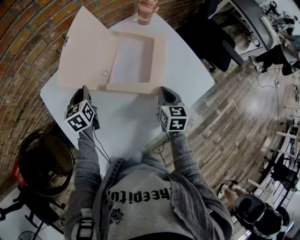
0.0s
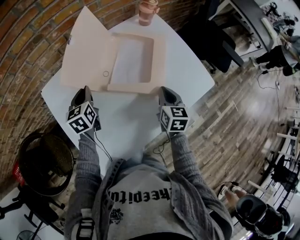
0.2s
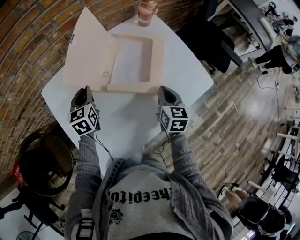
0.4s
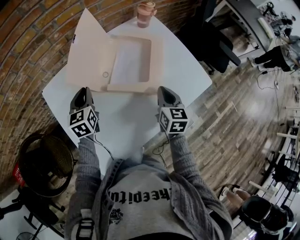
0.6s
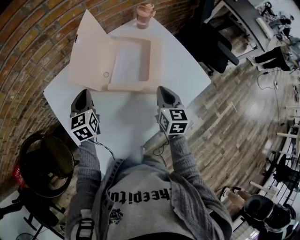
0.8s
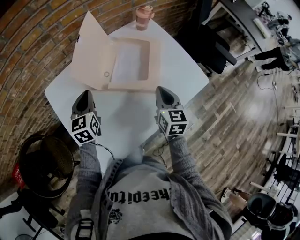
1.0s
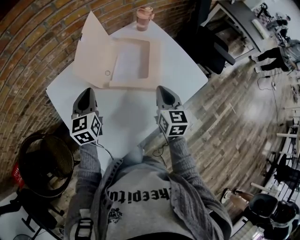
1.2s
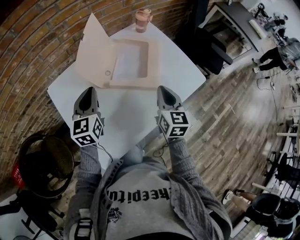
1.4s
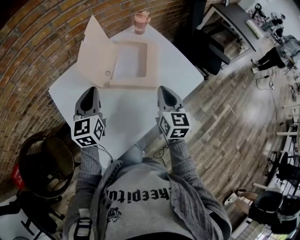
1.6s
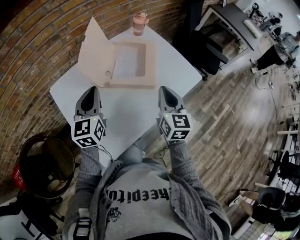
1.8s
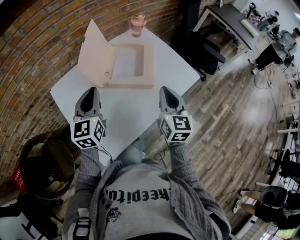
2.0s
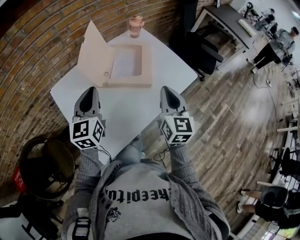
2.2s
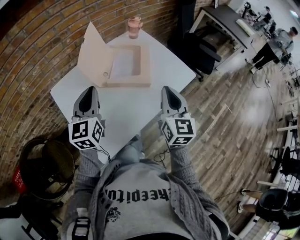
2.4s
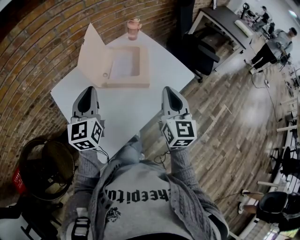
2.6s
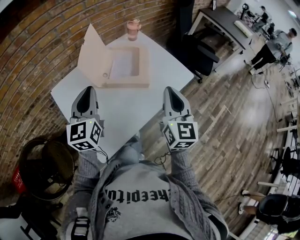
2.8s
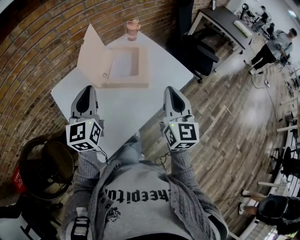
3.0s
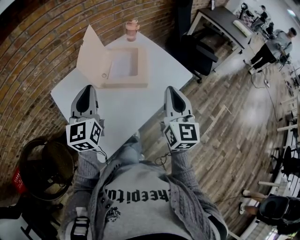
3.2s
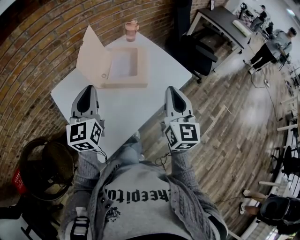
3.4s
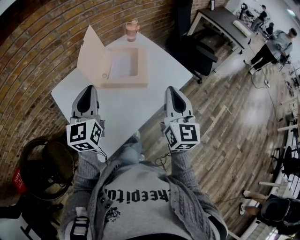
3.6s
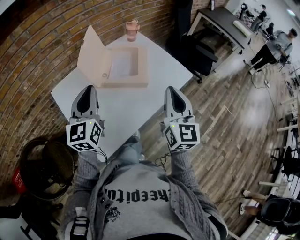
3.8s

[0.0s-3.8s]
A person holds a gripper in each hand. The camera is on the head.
0.0s to 1.2s: The left gripper moves upward and backward, roughly 10 cm. The right gripper travels upward by roughly 10 cm.
1.2s to 2.6s: Both grippers travel together upward and backward, roughly 15 cm.
2.6s to 3.8s: There are only small adjustments of the grippers.

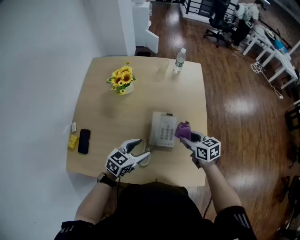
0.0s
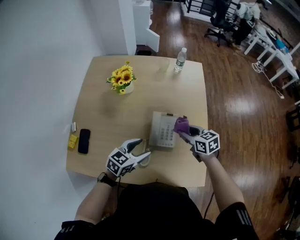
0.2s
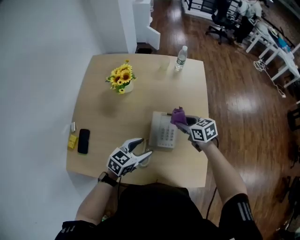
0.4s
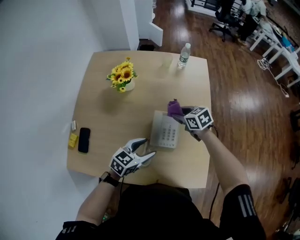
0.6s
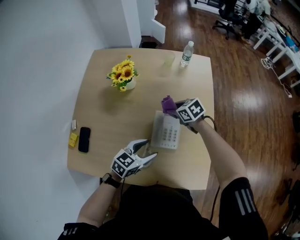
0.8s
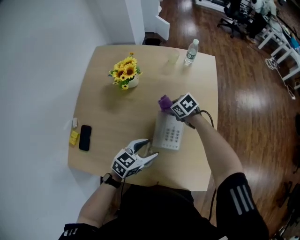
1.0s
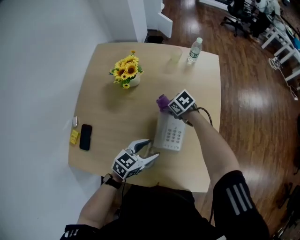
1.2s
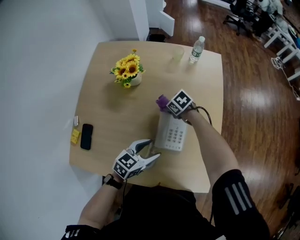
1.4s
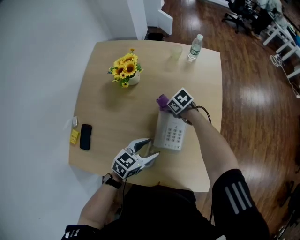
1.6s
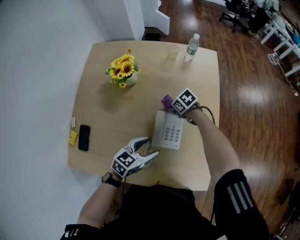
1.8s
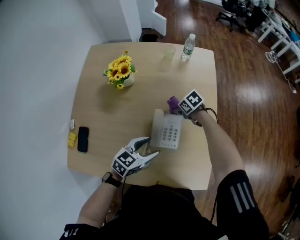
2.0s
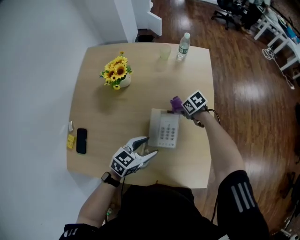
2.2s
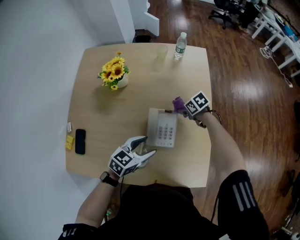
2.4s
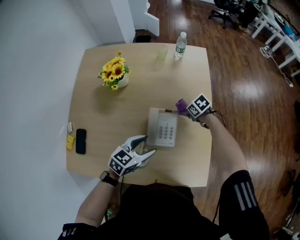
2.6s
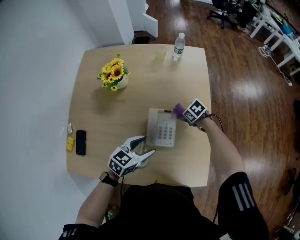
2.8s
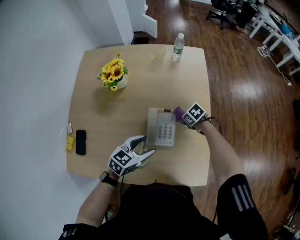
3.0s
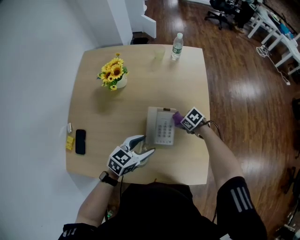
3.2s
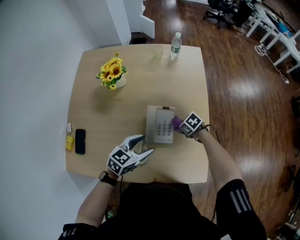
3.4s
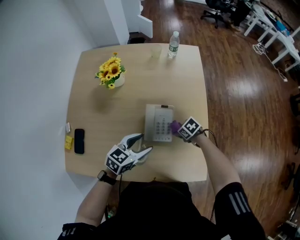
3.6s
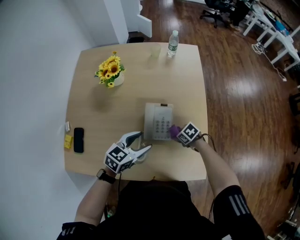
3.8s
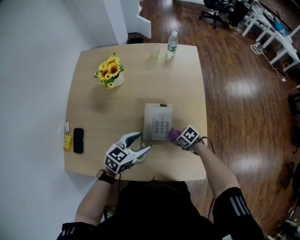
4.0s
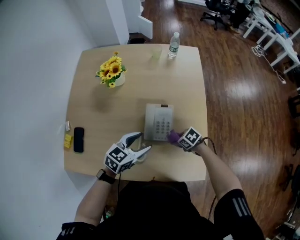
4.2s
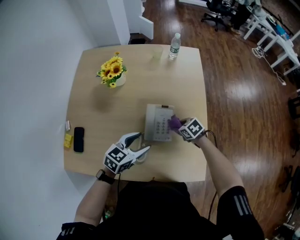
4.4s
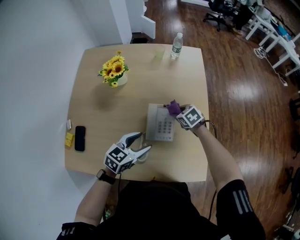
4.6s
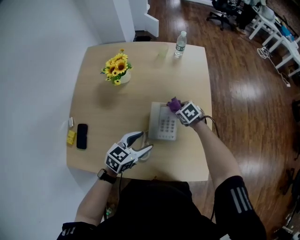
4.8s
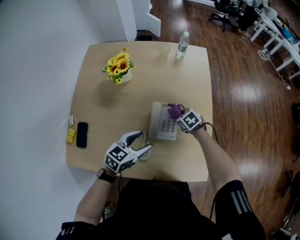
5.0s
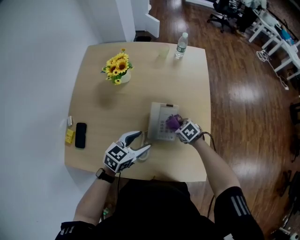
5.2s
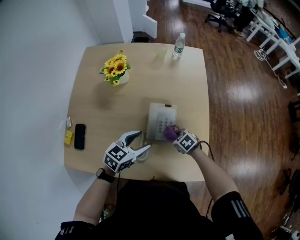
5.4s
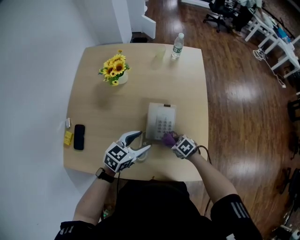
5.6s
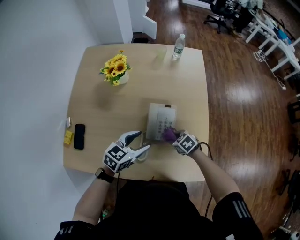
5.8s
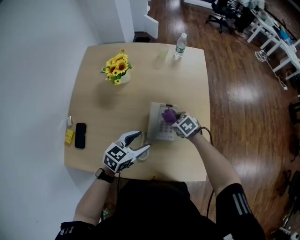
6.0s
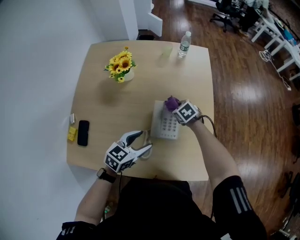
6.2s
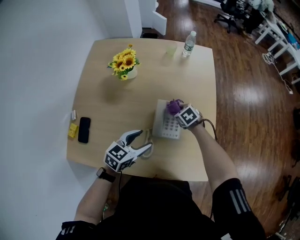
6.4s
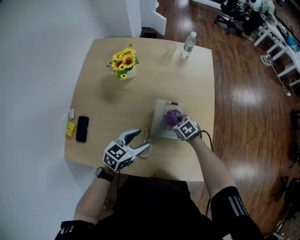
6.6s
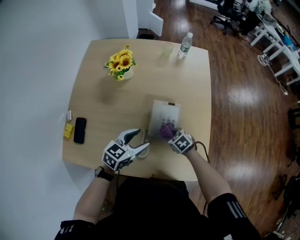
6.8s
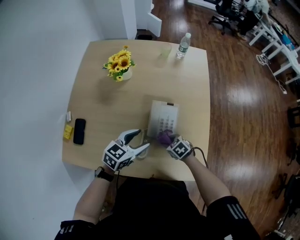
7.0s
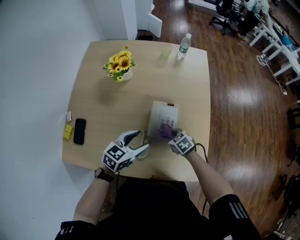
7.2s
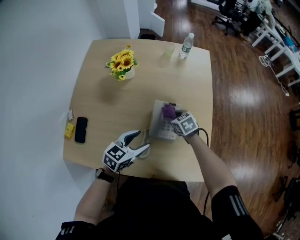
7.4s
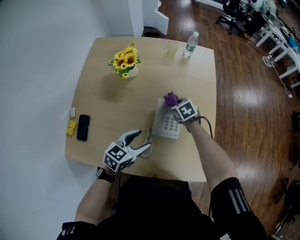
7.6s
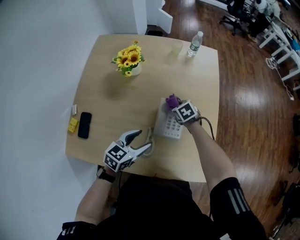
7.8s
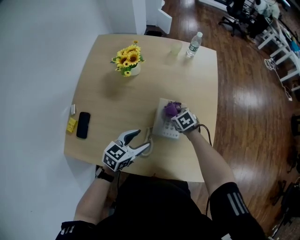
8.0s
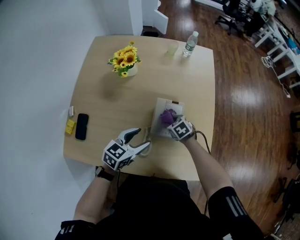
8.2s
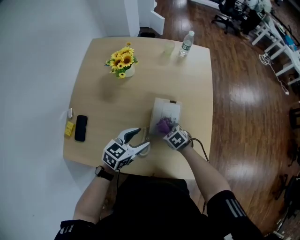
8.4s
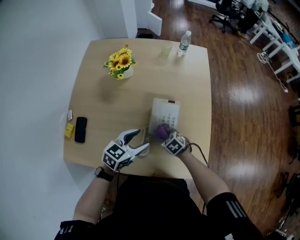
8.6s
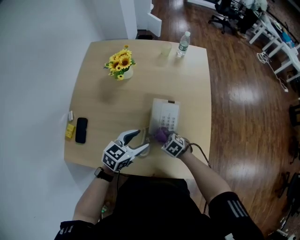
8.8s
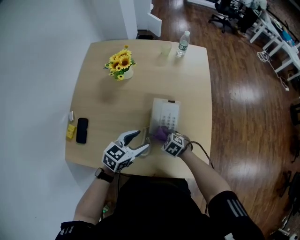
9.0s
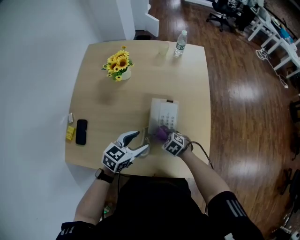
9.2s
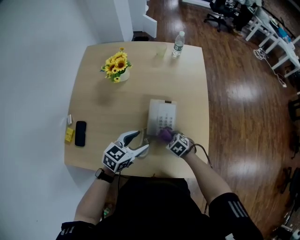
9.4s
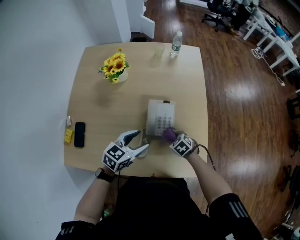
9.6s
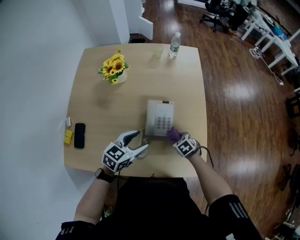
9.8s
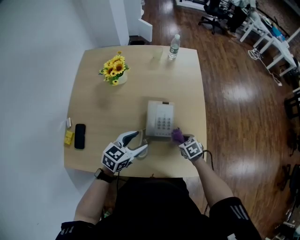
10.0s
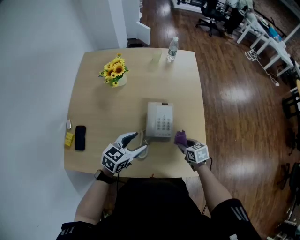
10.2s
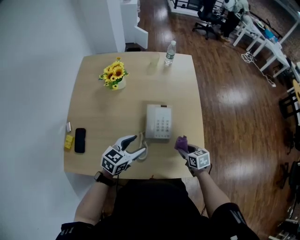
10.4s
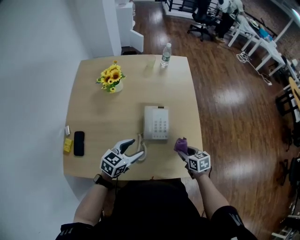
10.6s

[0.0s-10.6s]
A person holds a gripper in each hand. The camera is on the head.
0.0s to 1.6s: The left gripper changes place by roughly 5 cm. The right gripper ends up approximately 25 cm from where it was, and swivels approximately 40 degrees.
1.6s to 3.0s: The right gripper changes place by about 15 cm.
3.0s to 4.6s: The right gripper goes approximately 5 cm upward.
6.0s to 7.6s: The right gripper goes forward and backward, roughly 20 cm each way, reversing 2 times.
7.6s to 9.0s: The right gripper goes roughly 20 cm backward, and turns by some 20 degrees.
9.0s to 10.6s: The right gripper is displaced to the right and upward by some 15 cm, and rotates around the line of its fingers by approximately 50 degrees, clockwise from behind.

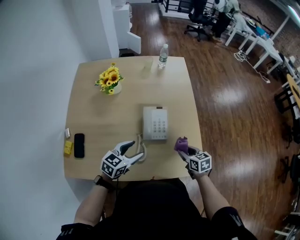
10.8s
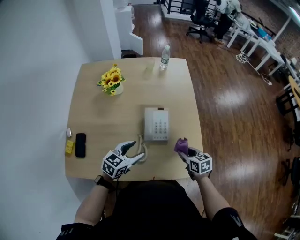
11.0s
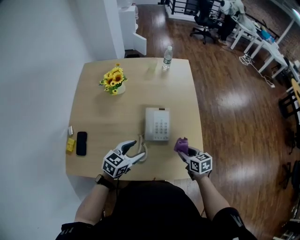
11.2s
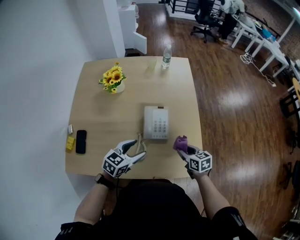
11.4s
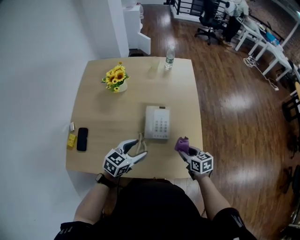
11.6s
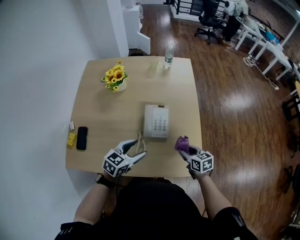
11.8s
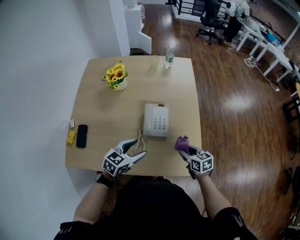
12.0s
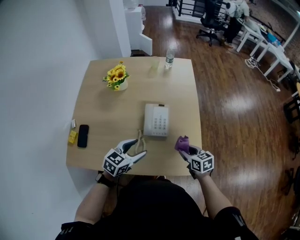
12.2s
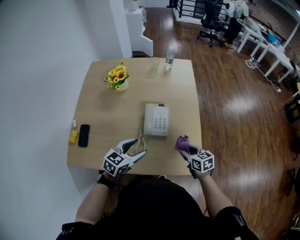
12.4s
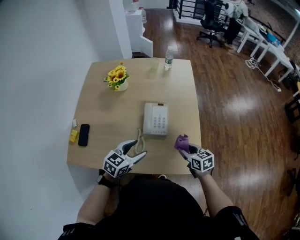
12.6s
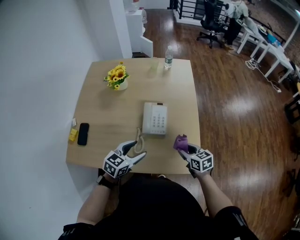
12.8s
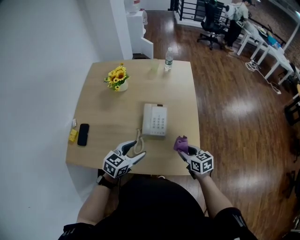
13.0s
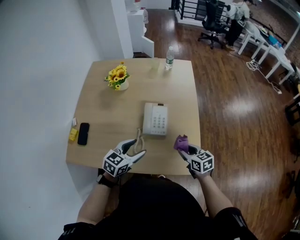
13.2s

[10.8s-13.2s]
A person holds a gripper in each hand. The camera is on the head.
10.8s to 12.0s: The grippers make only small movements.
12.0s to 13.2s: The grippers make only small movements.

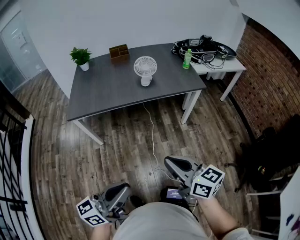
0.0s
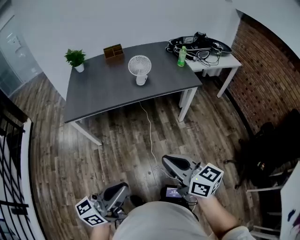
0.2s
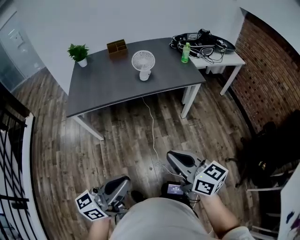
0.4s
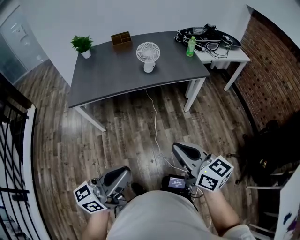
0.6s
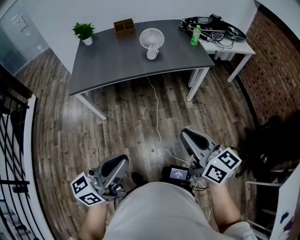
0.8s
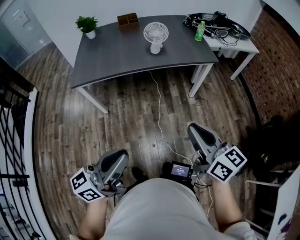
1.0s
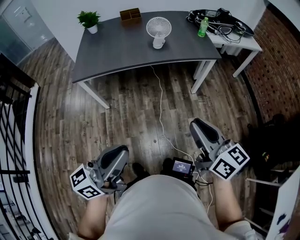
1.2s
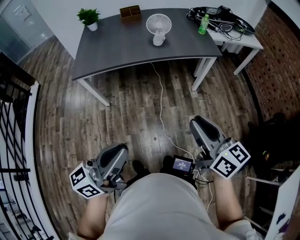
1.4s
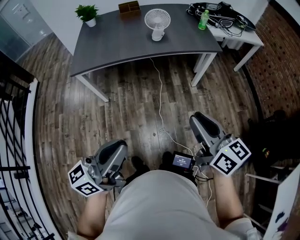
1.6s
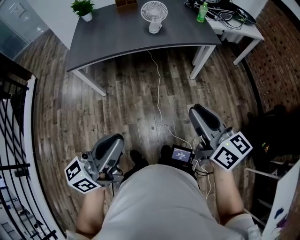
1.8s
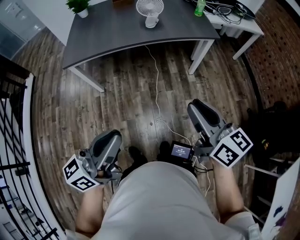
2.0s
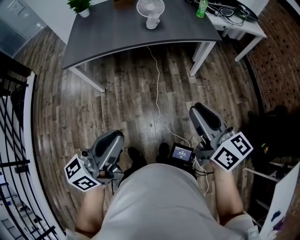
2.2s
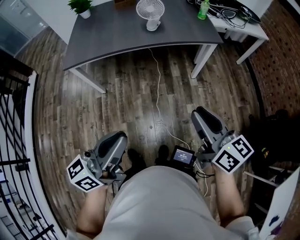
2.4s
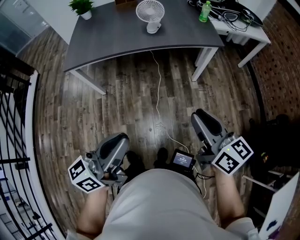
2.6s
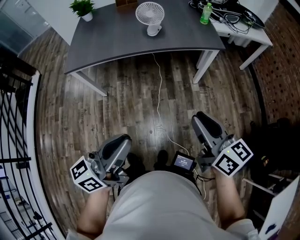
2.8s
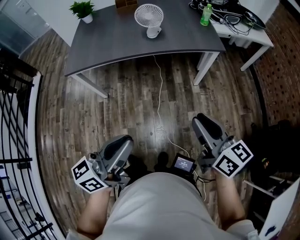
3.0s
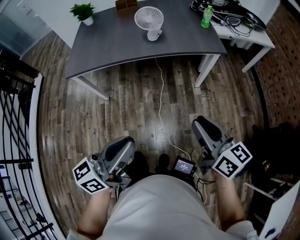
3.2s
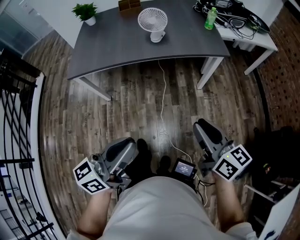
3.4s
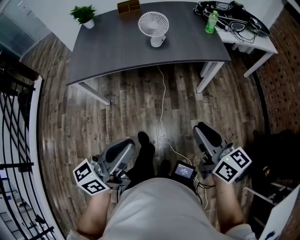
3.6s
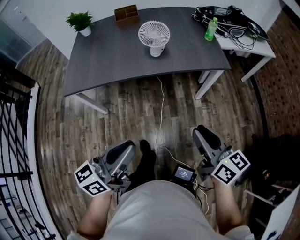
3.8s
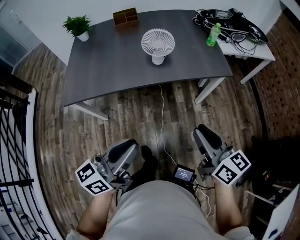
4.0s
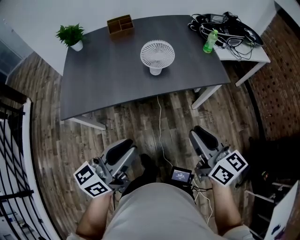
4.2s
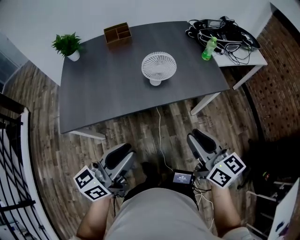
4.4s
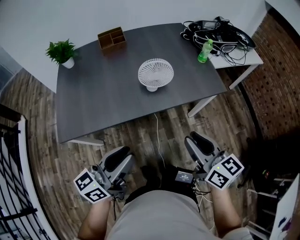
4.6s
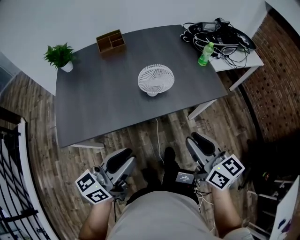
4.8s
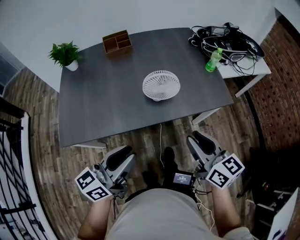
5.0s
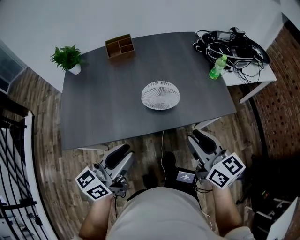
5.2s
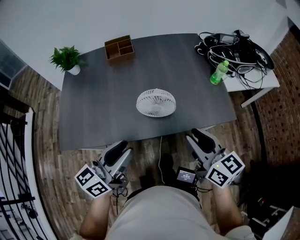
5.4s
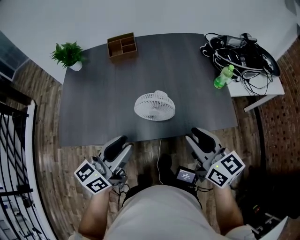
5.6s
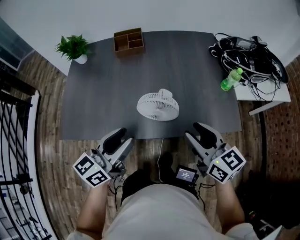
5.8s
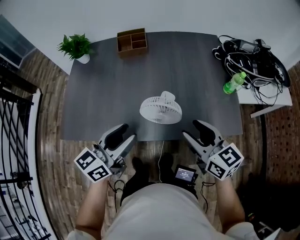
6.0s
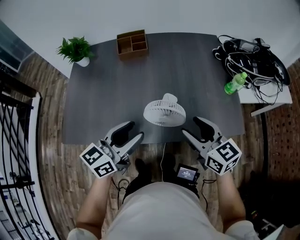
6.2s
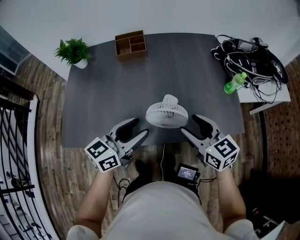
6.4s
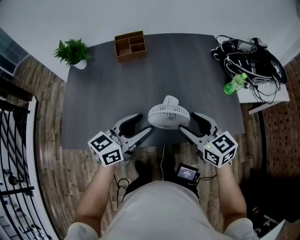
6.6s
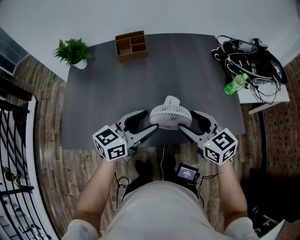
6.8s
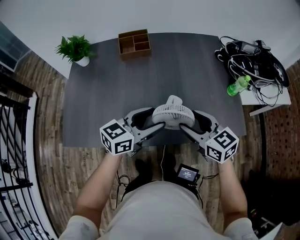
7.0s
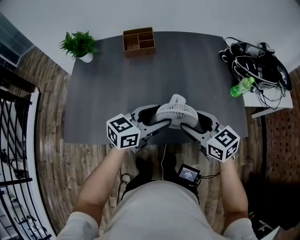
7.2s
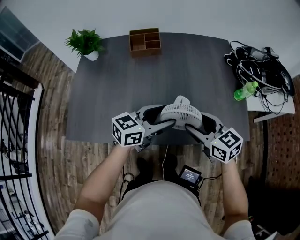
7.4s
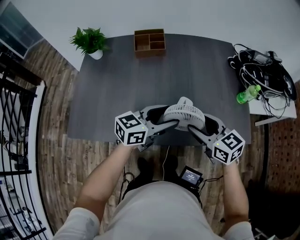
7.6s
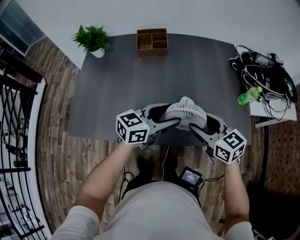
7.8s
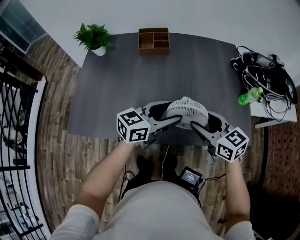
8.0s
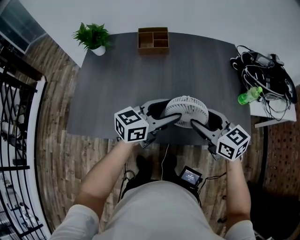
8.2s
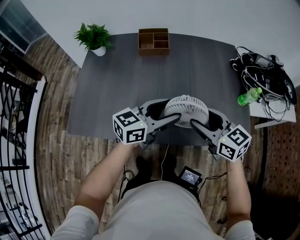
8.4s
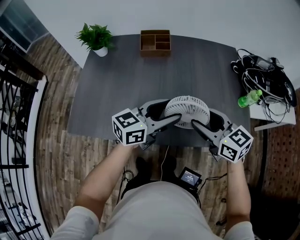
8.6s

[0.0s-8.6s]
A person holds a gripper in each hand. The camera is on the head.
0.0s to 1.4s: The right gripper heads to the right, covering approximately 5 cm.
1.4s to 2.8s: The grippers both shift to the right and forward by approximately 10 cm.
2.8s to 4.4s: The grippers both shift forward and to the left by roughly 30 cm.
4.4s to 5.8s: The two grippers go about 25 cm forward.
5.8s to 7.2s: The left gripper moves forward and downward, approximately 15 cm, changes its angle by about 20 degrees, and opens up. Meanwhile the right gripper travels forward, to the left and downward by some 10 cm, and opens its fingers.
7.2s to 8.6s: The grippers stay close to where they were, moving slightly.
